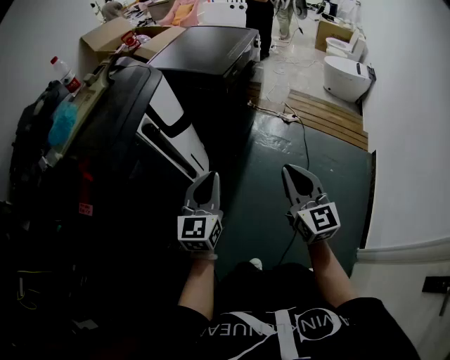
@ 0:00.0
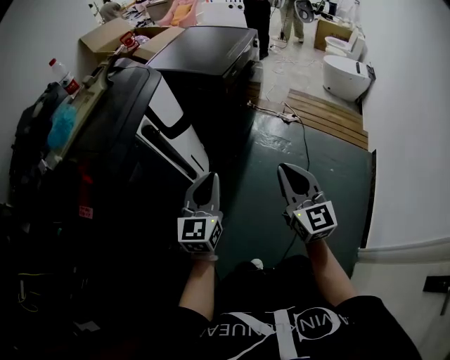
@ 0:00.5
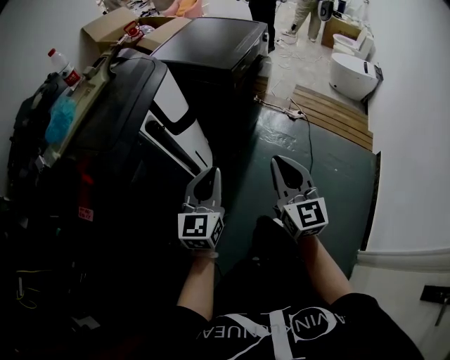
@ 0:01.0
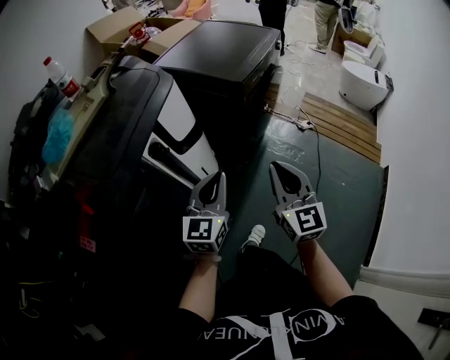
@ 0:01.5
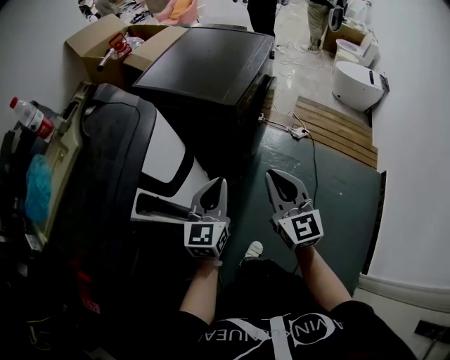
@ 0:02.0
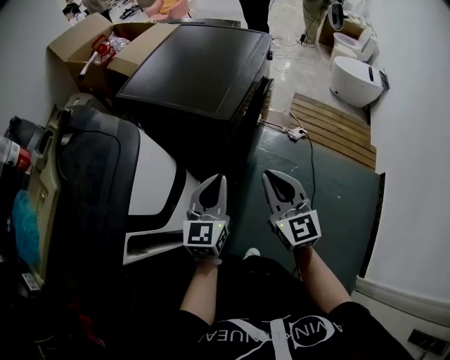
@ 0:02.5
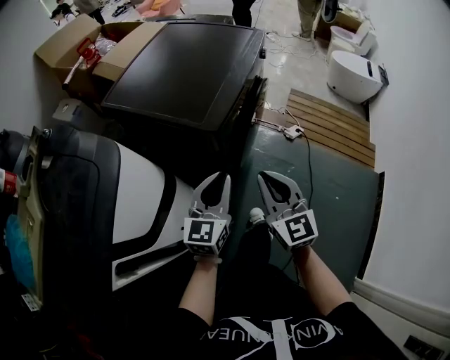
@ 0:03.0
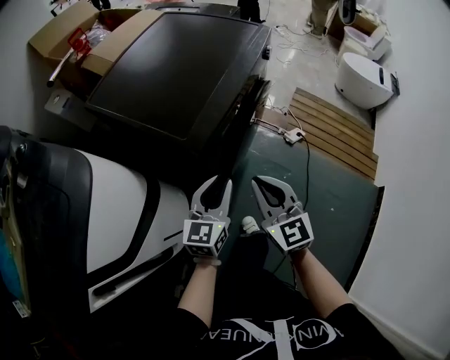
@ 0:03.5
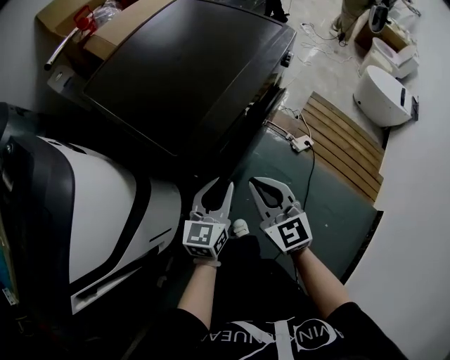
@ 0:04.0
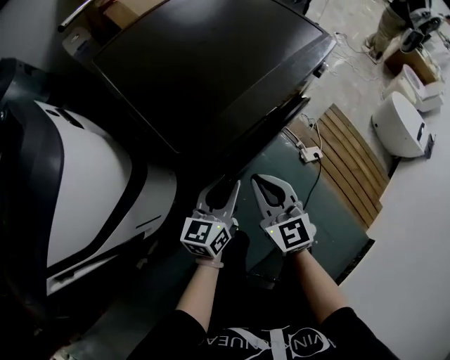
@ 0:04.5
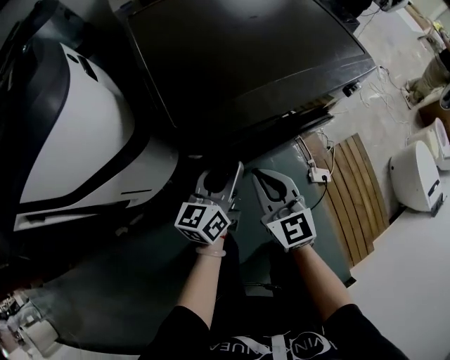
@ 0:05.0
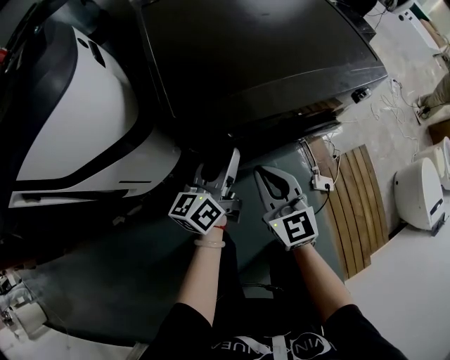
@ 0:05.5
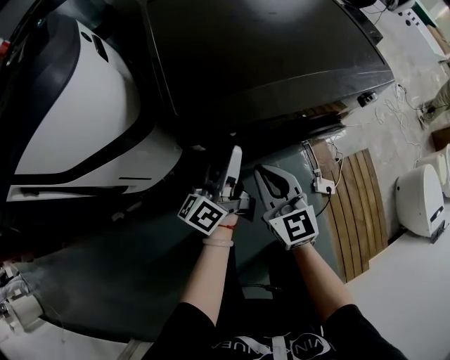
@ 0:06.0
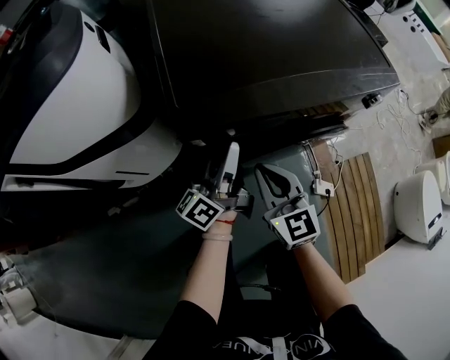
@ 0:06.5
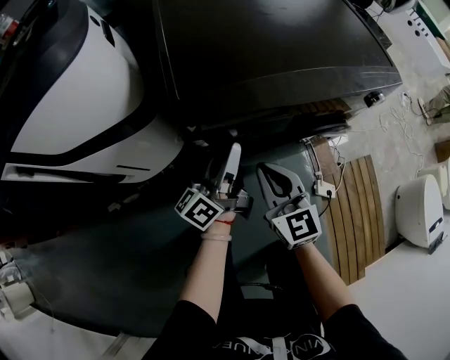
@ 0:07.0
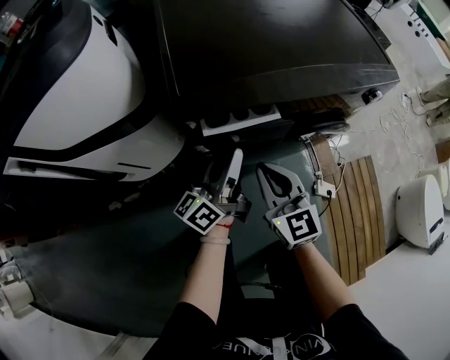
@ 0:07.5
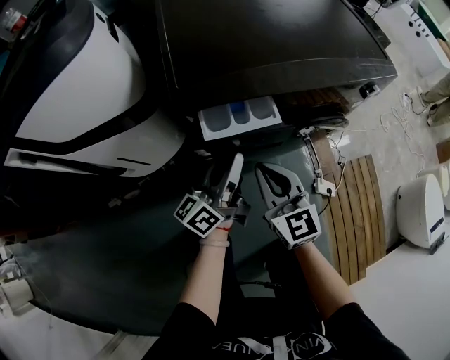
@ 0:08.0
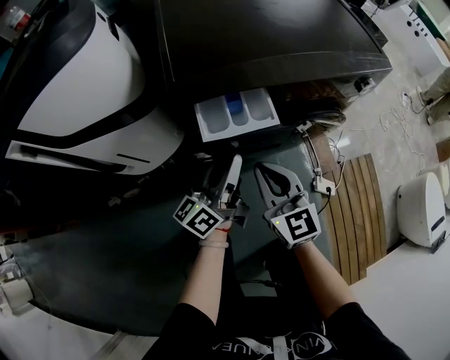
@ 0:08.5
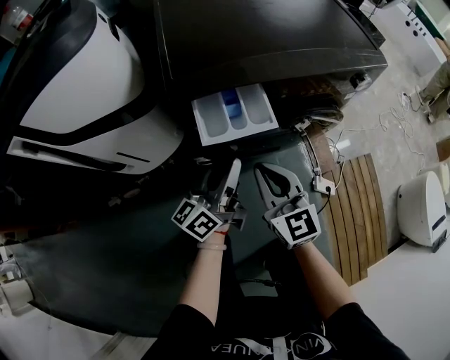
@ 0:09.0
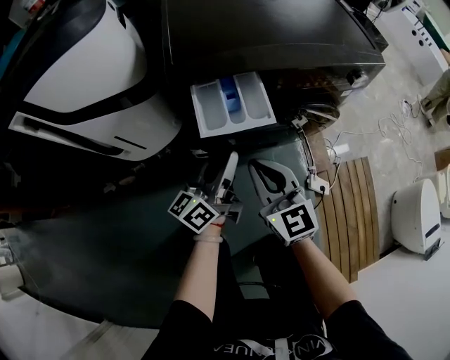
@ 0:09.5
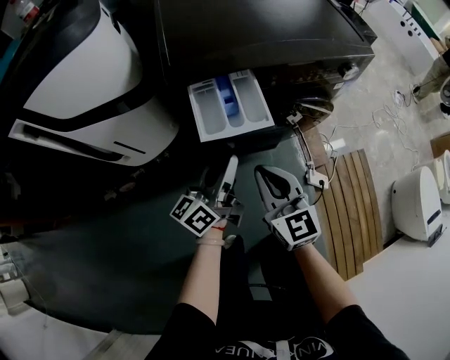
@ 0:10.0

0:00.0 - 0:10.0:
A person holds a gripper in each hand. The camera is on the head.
0:00.0 - 0:02.0: The grippers both shift forward by some 25 cm.
0:02.0 - 0:04.0: The left gripper is displaced forward, to the right and downward by roughly 35 cm, while the right gripper goes approximately 30 cm forward and downward, and rotates some 20 degrees.
0:04.0 - 0:06.0: The right gripper travels downward by some 5 cm, and rotates roughly 30 degrees. Meanwhile the left gripper changes place by approximately 10 cm, swivels some 60 degrees, and opens up.
0:06.0 - 0:08.0: The left gripper shifts approximately 5 cm backward, and closes its fingers.
0:08.0 - 0:10.0: Both grippers travel together backward, about 10 cm.

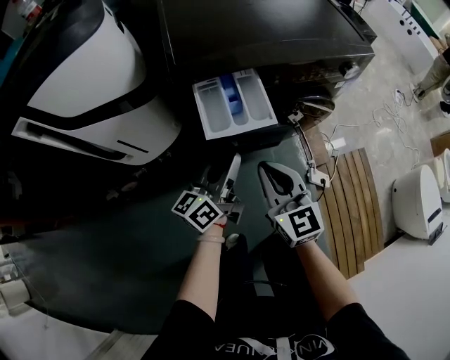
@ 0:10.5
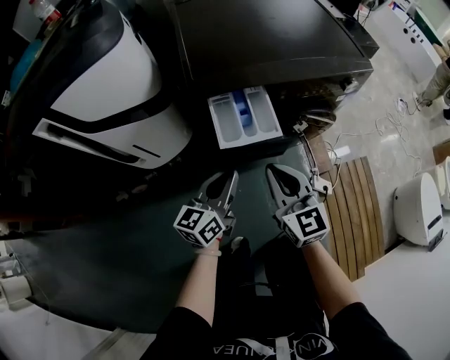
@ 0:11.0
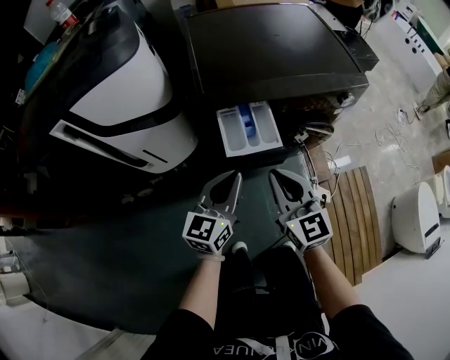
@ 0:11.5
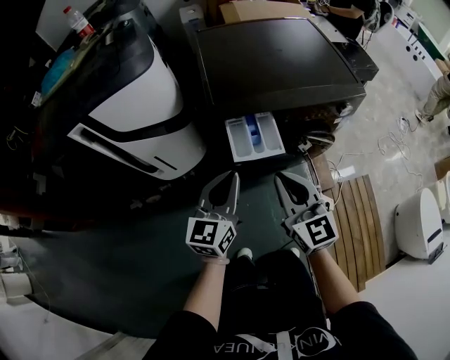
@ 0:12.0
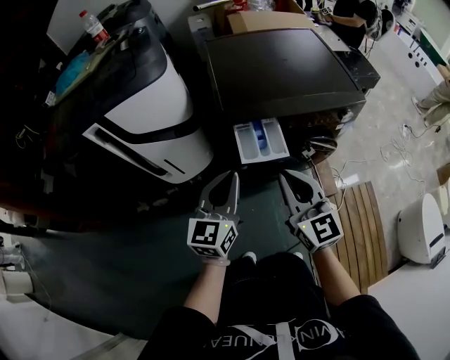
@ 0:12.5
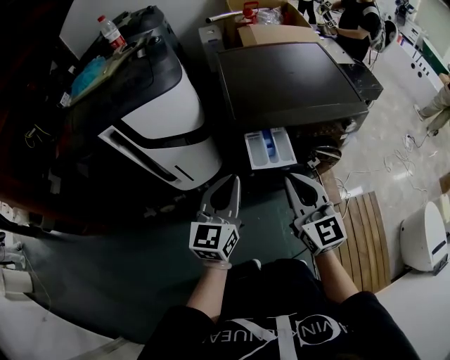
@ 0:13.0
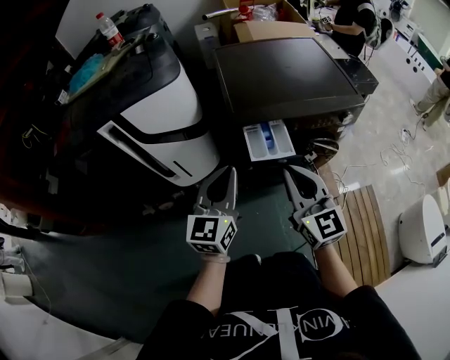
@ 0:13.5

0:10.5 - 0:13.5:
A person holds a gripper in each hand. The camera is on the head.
0:10.5 - 0:12.0: The two grippers go about 15 cm upward. The left gripper turns by approximately 40 degrees.
0:12.0 - 0:13.5: The right gripper shifts some 5 cm upward; the left gripper is displaced upward and to the left by about 10 cm.

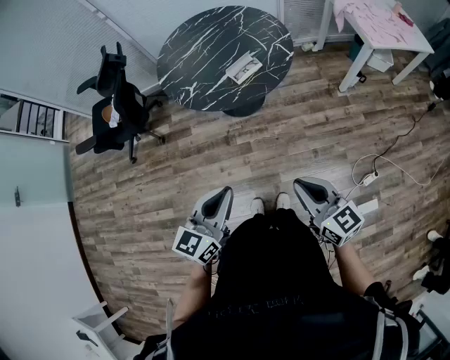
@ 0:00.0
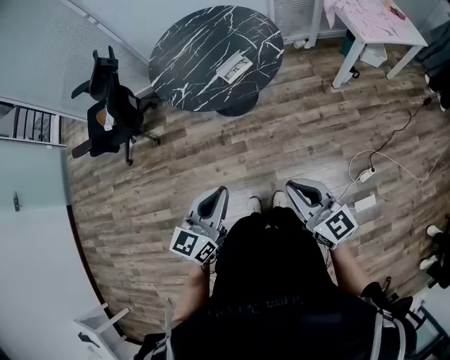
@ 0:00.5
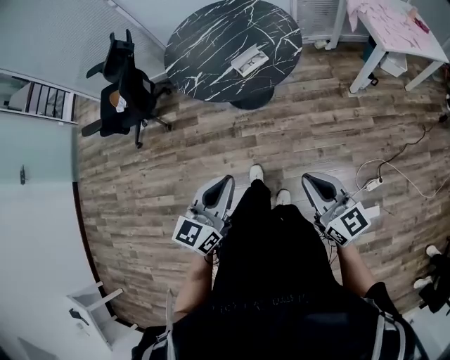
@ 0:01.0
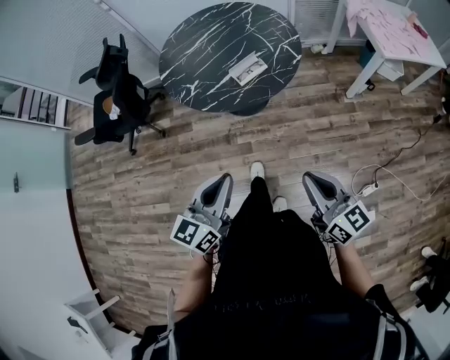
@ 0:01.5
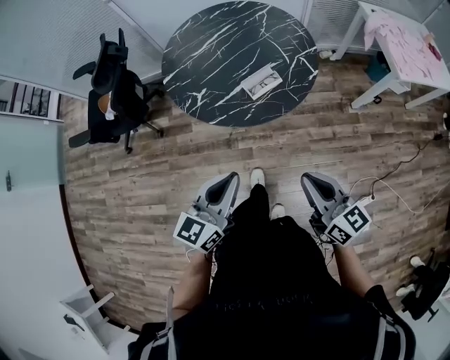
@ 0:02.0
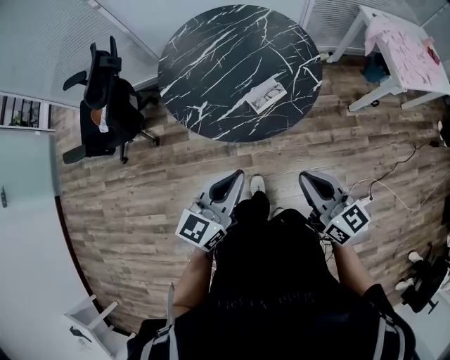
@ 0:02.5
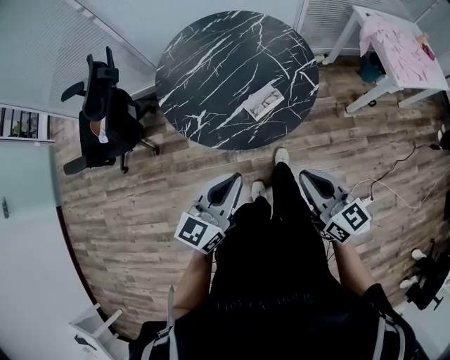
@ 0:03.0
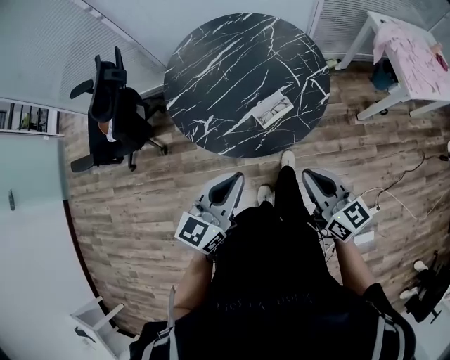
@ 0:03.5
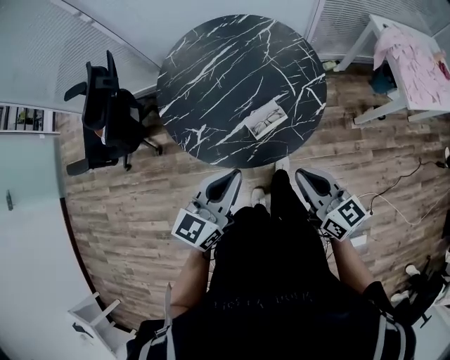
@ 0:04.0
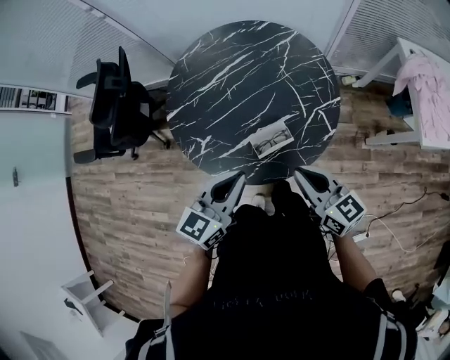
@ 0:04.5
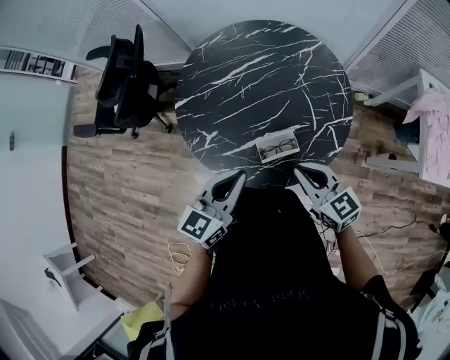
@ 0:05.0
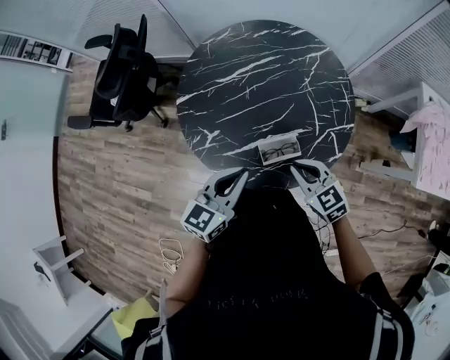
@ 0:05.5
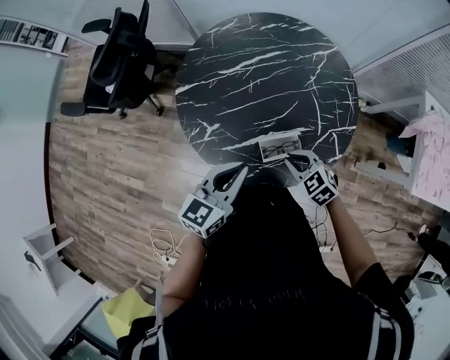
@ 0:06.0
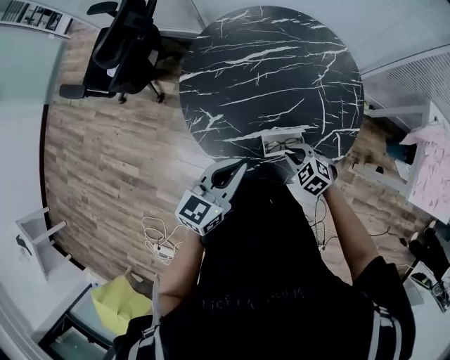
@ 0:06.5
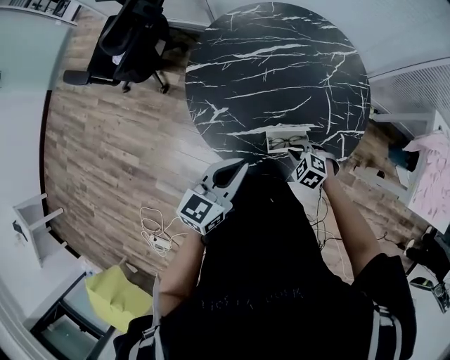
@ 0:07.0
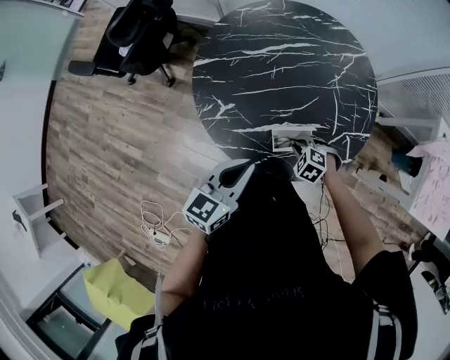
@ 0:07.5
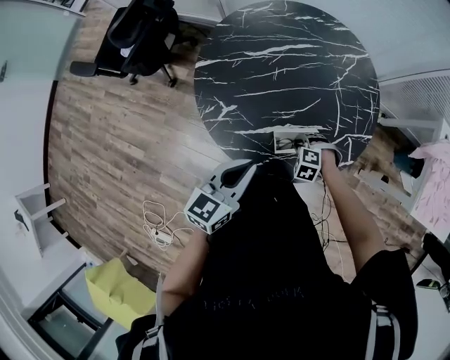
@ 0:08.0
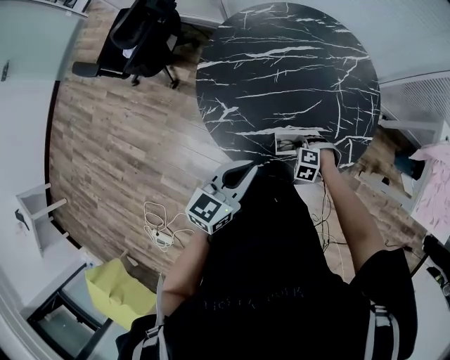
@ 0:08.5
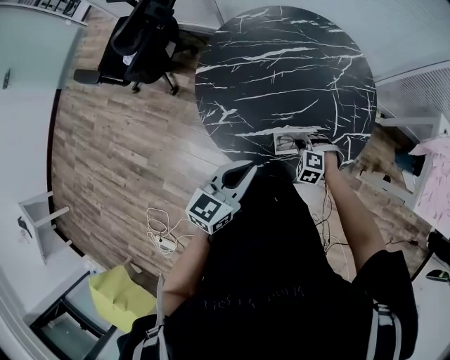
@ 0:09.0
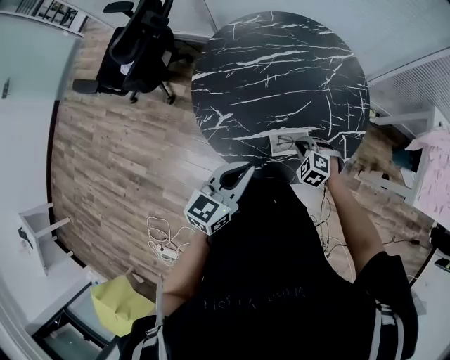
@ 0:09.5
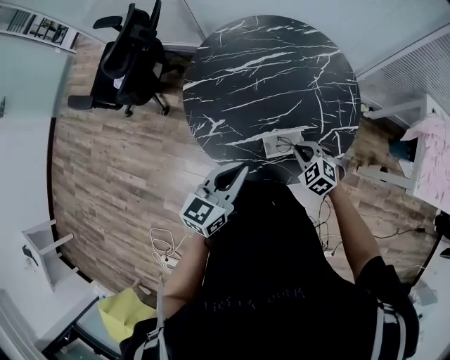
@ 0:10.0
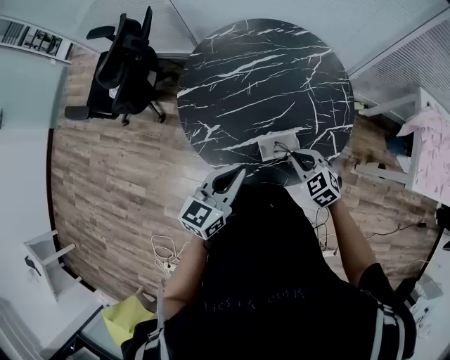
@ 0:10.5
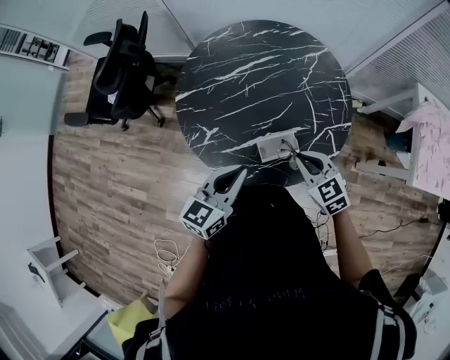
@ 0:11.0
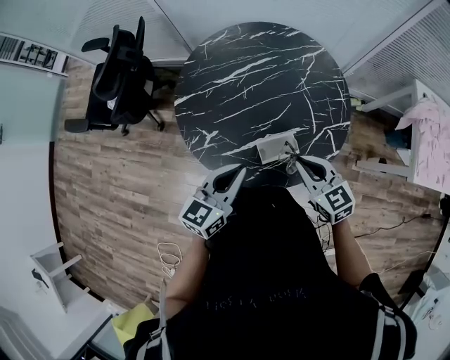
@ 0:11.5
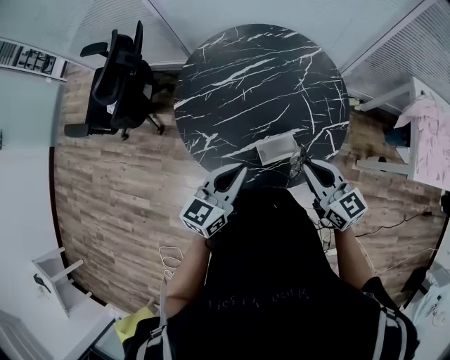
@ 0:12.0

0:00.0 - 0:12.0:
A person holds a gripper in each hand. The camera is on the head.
0:00.0 - 0:02.0: Both grippers move forward, about 15 cm.
0:02.0 - 0:04.0: The two grippers go approximately 20 cm forward.
0:04.0 - 0:06.0: The left gripper shifts roughly 15 cm forward and downward; the right gripper moves forward and downward, approximately 25 cm, and points its fingers approximately 40 degrees further downward.
0:06.0 - 0:08.0: The right gripper heads downward, covering approximately 15 cm, and rotates some 50 degrees.
0:08.0 - 0:10.0: The right gripper goes some 10 cm upward, and rotates approximately 40 degrees.
0:10.0 - 0:12.0: The right gripper shifts about 20 cm upward, and angles its fingers upward, by some 40 degrees.

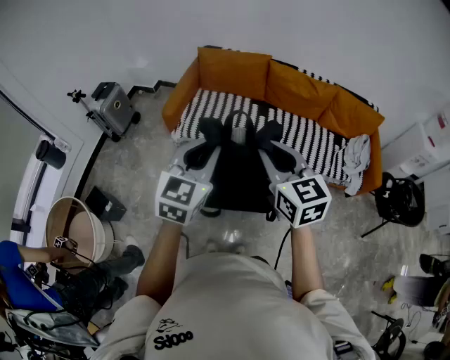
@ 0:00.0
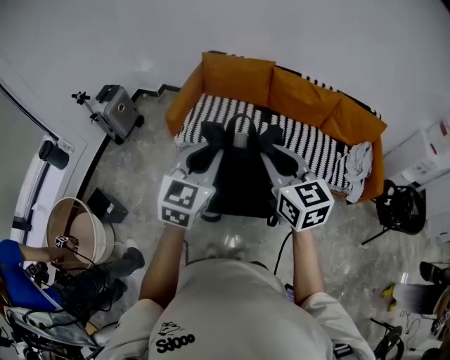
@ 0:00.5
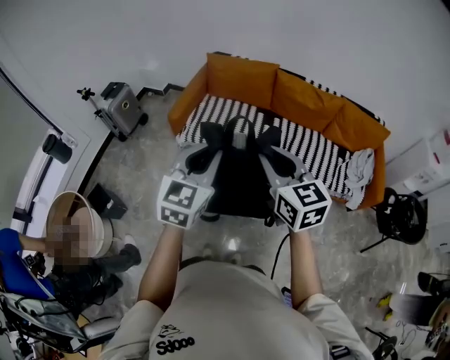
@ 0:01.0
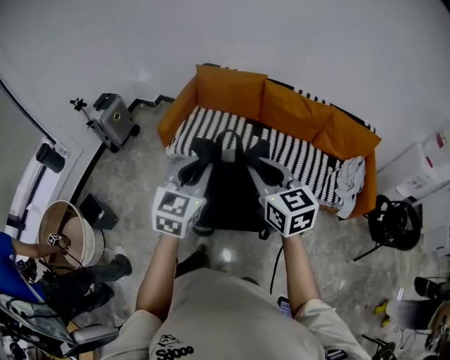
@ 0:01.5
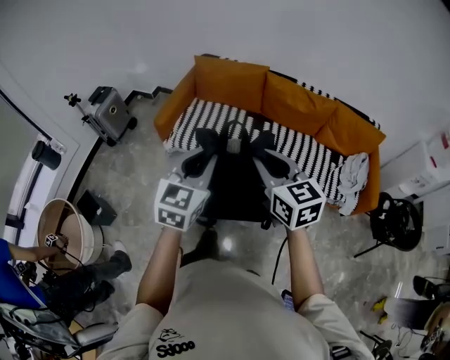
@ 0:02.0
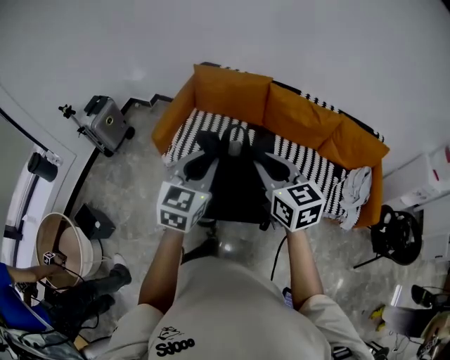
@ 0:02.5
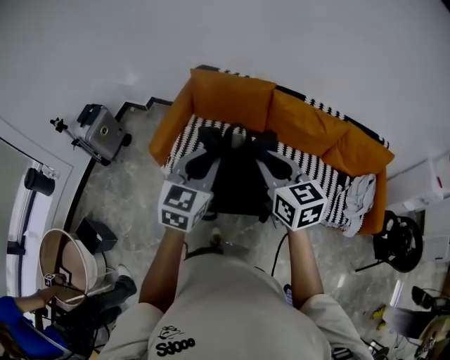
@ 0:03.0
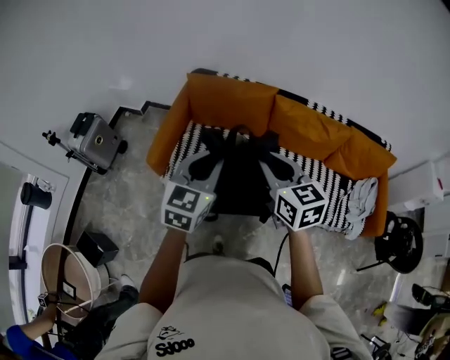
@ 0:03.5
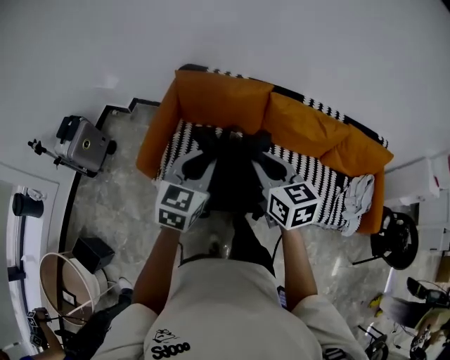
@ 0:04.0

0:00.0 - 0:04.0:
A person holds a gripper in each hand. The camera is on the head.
0:00.0 - 0:02.0: The right gripper moves forward and to the right, about 10 cm. The left gripper shifts approximately 10 cm to the right and forward.
0:02.0 - 0:04.0: Both grippers travel together forward, roughly 35 cm.
